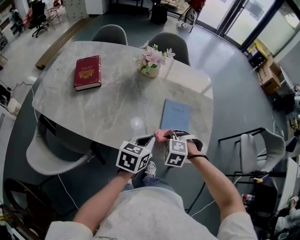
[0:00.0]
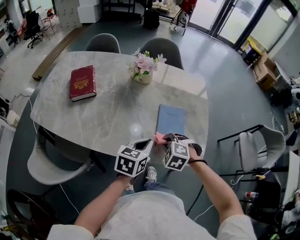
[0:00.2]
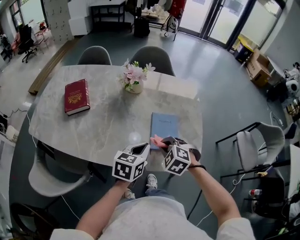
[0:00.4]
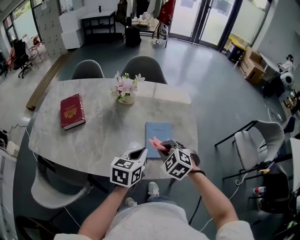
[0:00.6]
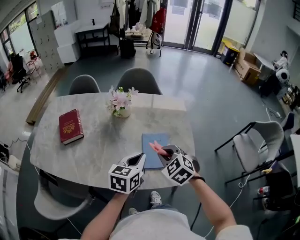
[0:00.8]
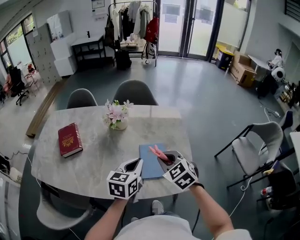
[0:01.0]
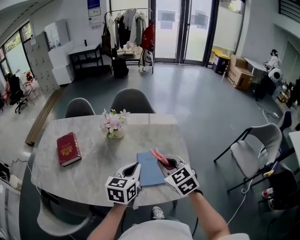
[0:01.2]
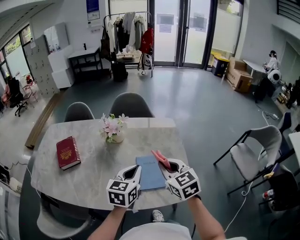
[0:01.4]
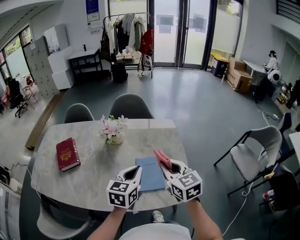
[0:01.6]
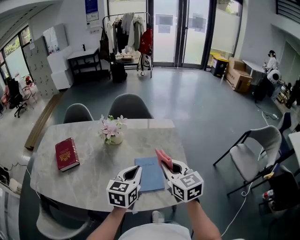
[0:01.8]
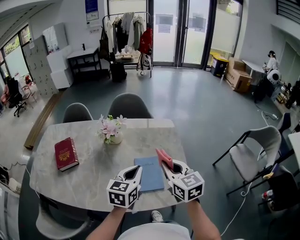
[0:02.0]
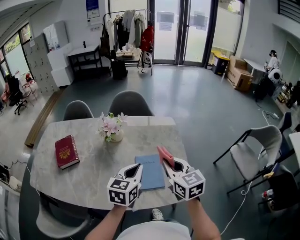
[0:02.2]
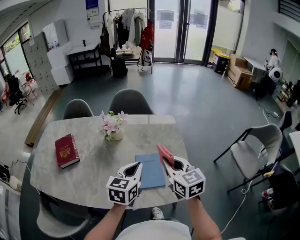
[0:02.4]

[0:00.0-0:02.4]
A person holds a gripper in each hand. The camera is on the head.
0:00.0 to 0:01.2: The right gripper heads upward and forward, covering some 25 cm, and tilts its fingers approximately 40 degrees upward; the left gripper moves upward, forward and to the right, some 15 cm.
0:01.2 to 0:02.4: The right gripper changes its angle by roughly 20 degrees.

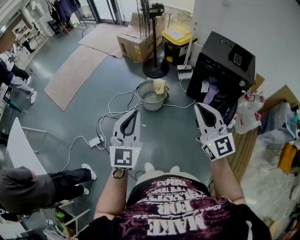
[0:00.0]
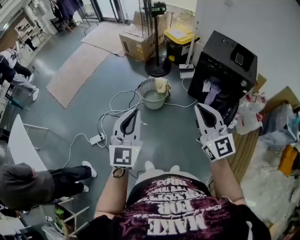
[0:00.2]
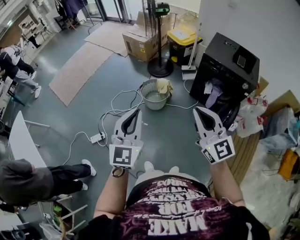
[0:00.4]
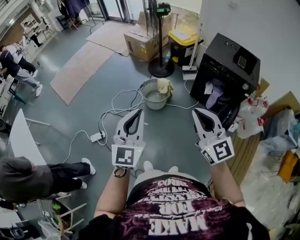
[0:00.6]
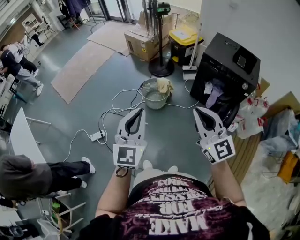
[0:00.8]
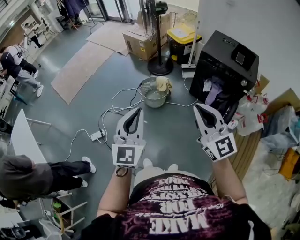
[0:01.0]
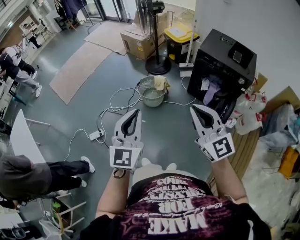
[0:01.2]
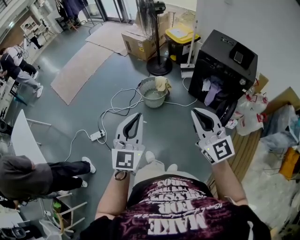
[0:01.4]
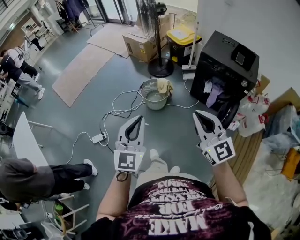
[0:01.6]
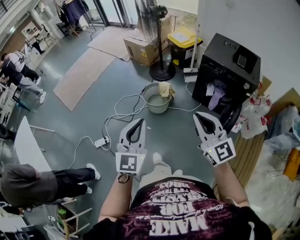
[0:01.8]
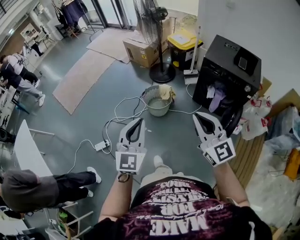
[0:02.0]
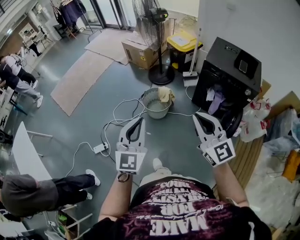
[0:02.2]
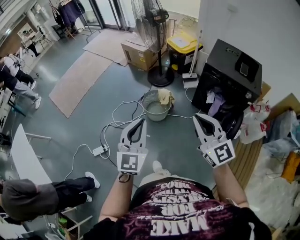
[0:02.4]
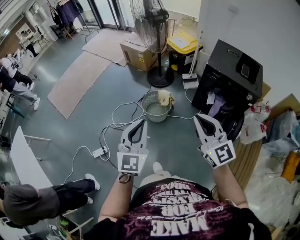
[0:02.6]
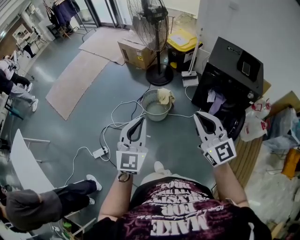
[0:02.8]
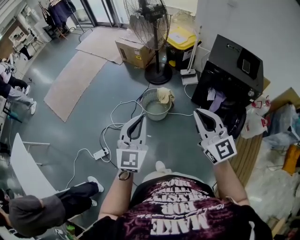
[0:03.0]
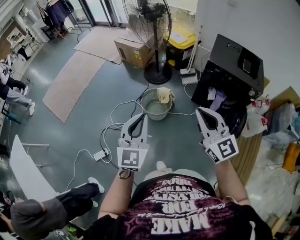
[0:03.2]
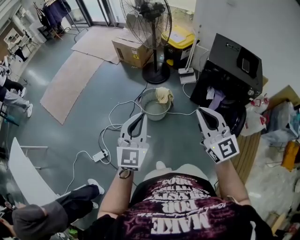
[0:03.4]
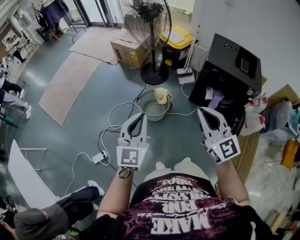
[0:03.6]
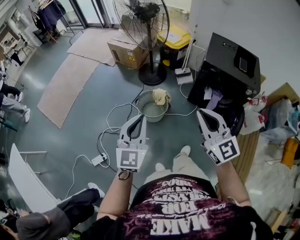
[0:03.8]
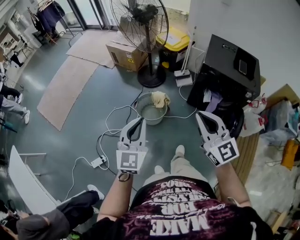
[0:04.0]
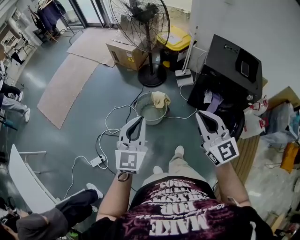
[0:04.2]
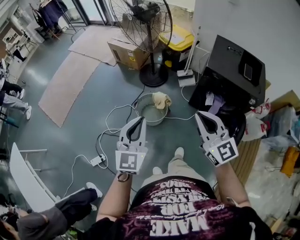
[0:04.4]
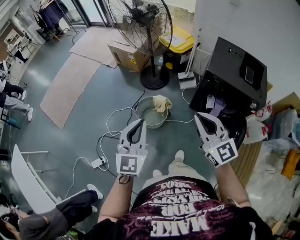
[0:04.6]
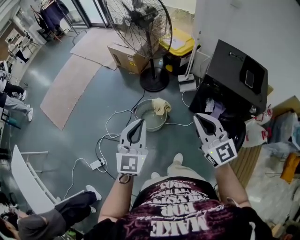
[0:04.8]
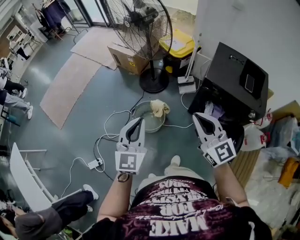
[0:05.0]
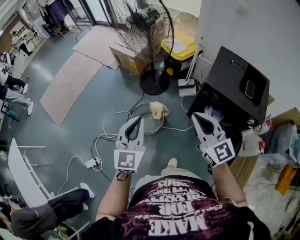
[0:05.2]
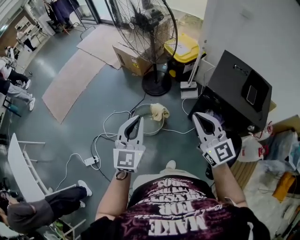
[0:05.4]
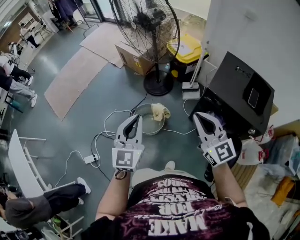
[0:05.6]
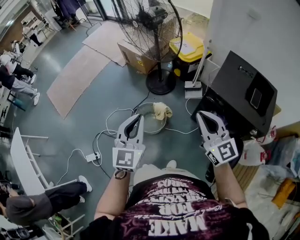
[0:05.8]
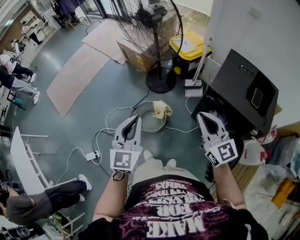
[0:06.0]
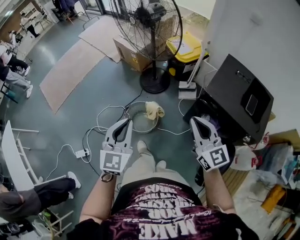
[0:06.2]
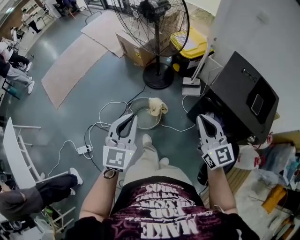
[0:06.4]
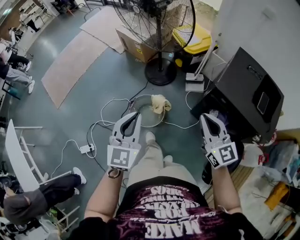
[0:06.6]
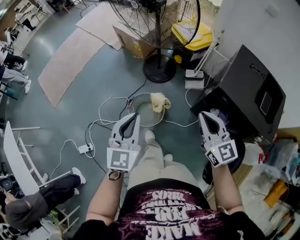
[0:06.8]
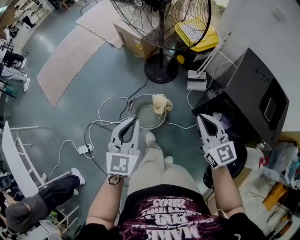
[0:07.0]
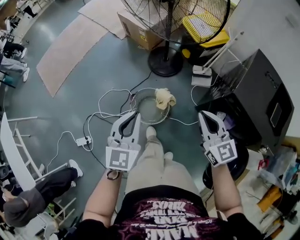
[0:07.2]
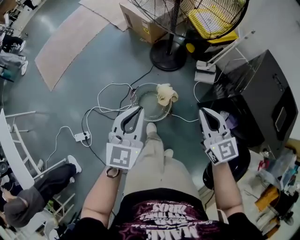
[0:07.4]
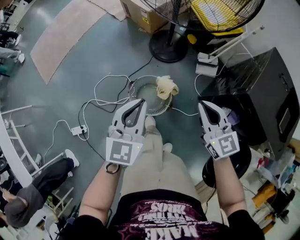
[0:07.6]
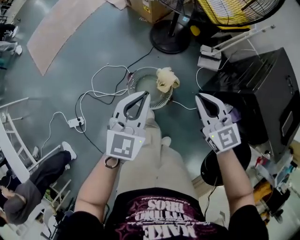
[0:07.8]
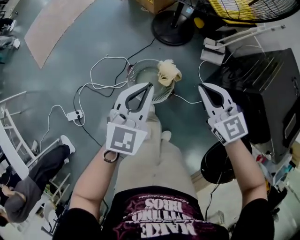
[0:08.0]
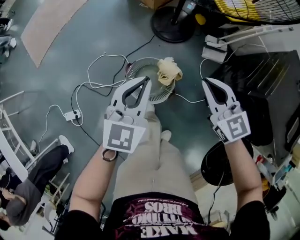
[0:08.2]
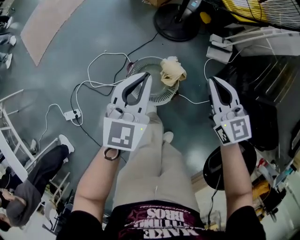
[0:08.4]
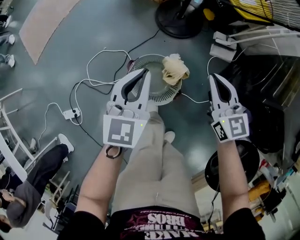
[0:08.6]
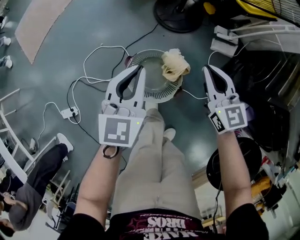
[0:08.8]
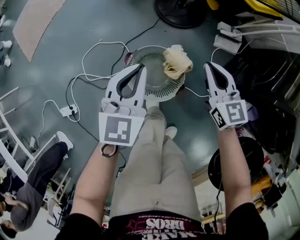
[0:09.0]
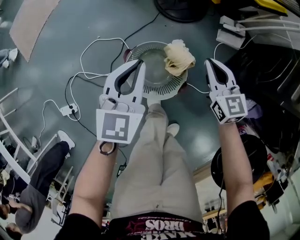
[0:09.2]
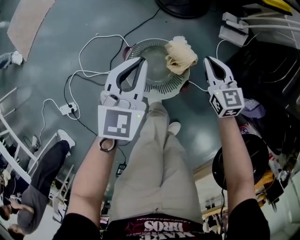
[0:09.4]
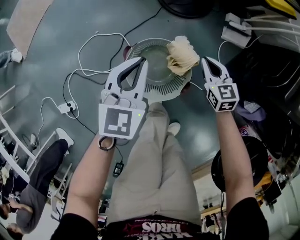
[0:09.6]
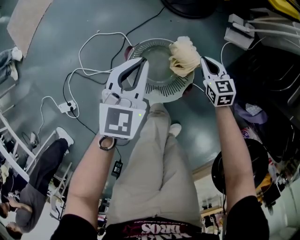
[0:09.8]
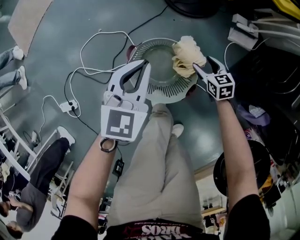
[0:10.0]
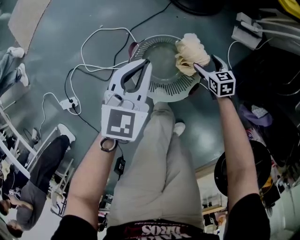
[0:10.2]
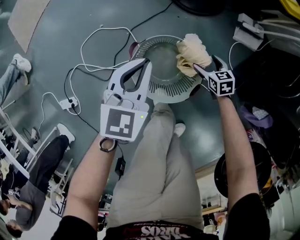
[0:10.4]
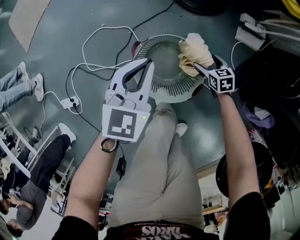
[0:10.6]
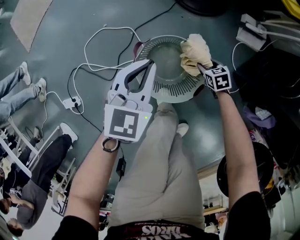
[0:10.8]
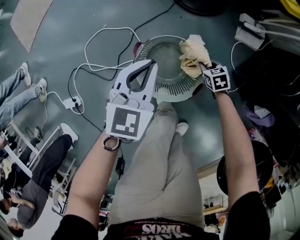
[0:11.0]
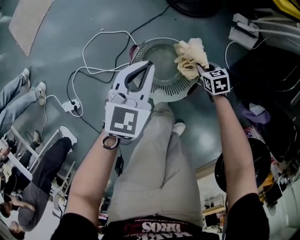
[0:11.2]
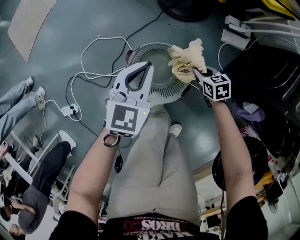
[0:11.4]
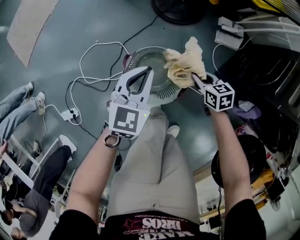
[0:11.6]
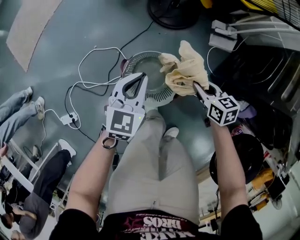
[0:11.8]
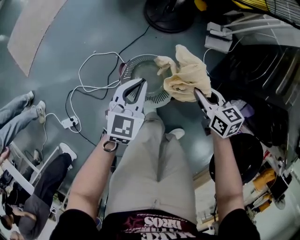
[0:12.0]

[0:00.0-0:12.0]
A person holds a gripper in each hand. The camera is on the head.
0:00.0 to 0:01.6: The left gripper travels to the right by approximately 5 cm, while the right gripper moves about 5 cm.
0:01.6 to 0:03.0: The two grippers go roughly 20 cm forward.
0:03.0 to 0:04.4: The grippers both shift forward by about 10 cm.
0:04.4 to 0:06.0: The right gripper goes some 20 cm to the right and forward. The left gripper shifts about 15 cm forward and to the right.
0:06.0 to 0:07.6: The grippers both shift downward and forward by roughly 25 cm.
0:07.6 to 0:09.0: Both grippers travel together downward and forward, about 25 cm.
0:09.0 to 0:10.4: The right gripper goes about 35 cm downward, tilts its fingers about 30 degrees downward, and opens its fingers, while the left gripper heads downward, covering approximately 15 cm.
0:10.4 to 0:12.0: The right gripper moves upward, approximately 30 cm, swivels roughly 20 degrees, and closes its fingers. The left gripper moves upward and to the right, roughly 10 cm.

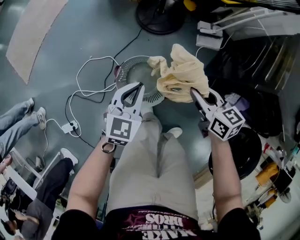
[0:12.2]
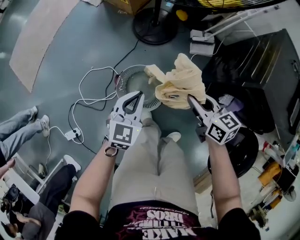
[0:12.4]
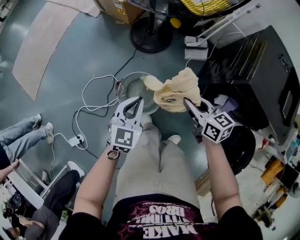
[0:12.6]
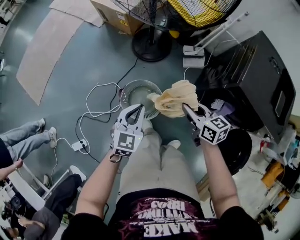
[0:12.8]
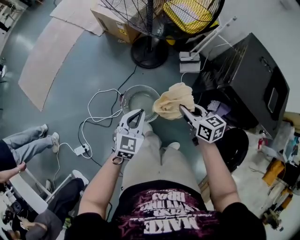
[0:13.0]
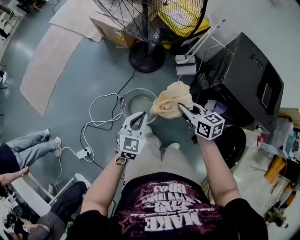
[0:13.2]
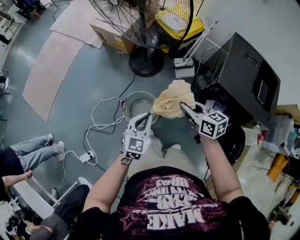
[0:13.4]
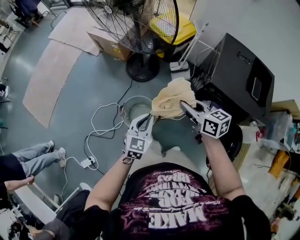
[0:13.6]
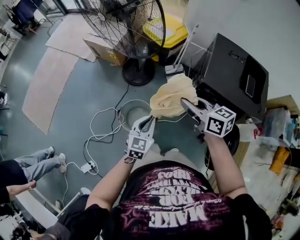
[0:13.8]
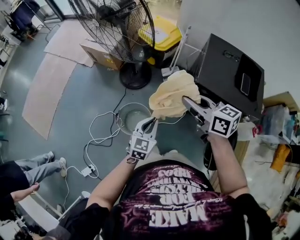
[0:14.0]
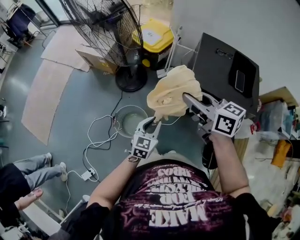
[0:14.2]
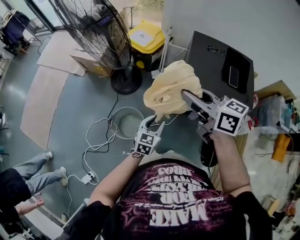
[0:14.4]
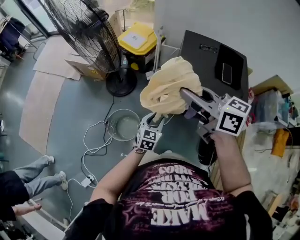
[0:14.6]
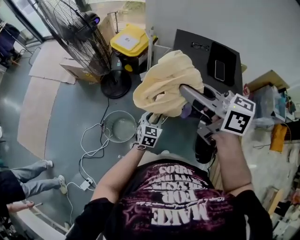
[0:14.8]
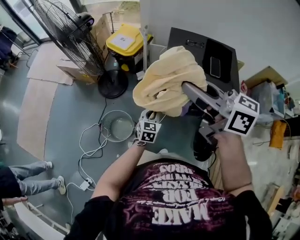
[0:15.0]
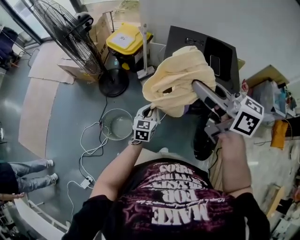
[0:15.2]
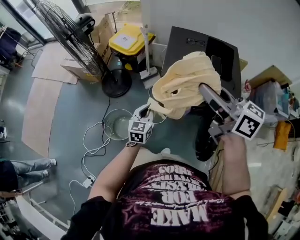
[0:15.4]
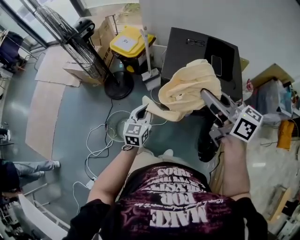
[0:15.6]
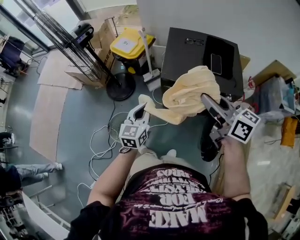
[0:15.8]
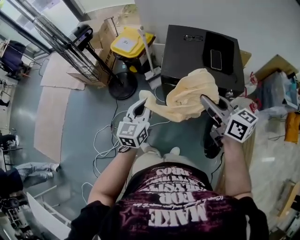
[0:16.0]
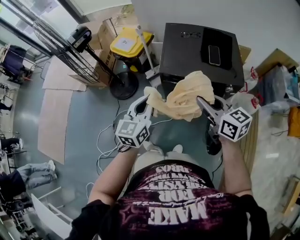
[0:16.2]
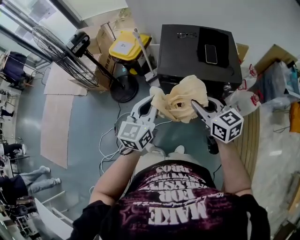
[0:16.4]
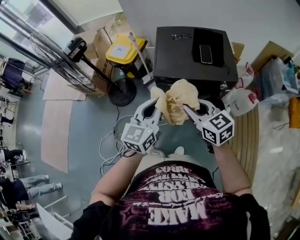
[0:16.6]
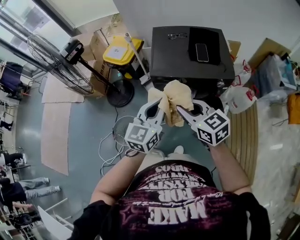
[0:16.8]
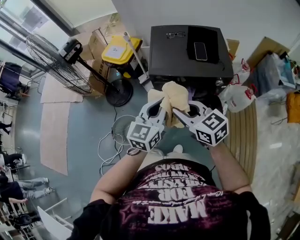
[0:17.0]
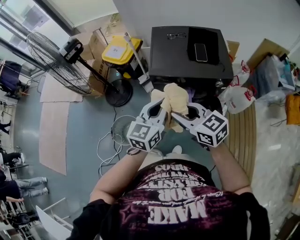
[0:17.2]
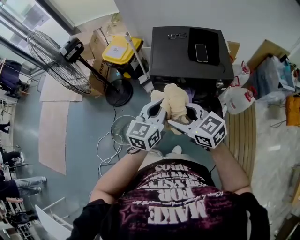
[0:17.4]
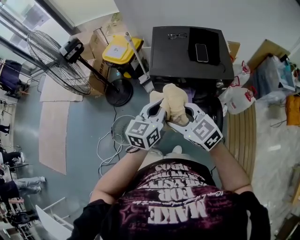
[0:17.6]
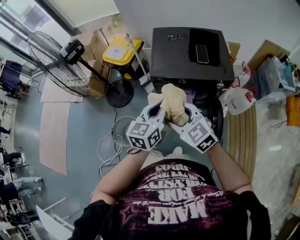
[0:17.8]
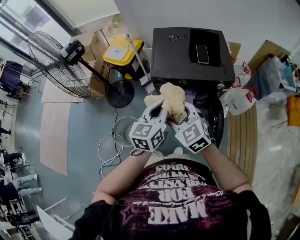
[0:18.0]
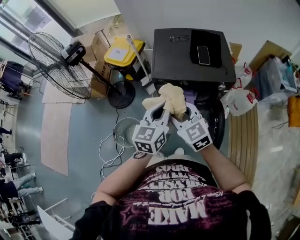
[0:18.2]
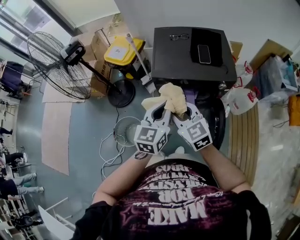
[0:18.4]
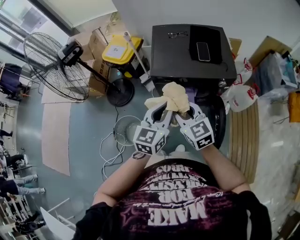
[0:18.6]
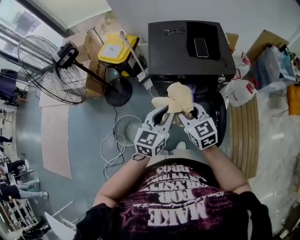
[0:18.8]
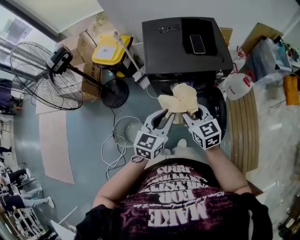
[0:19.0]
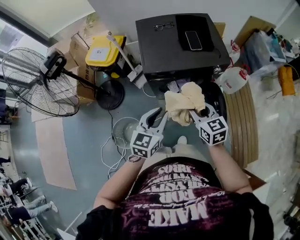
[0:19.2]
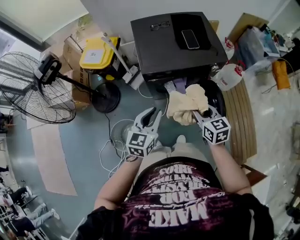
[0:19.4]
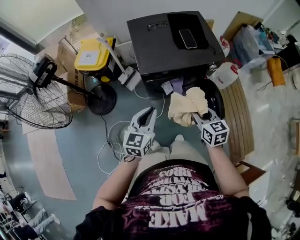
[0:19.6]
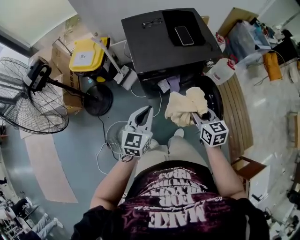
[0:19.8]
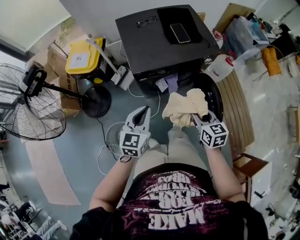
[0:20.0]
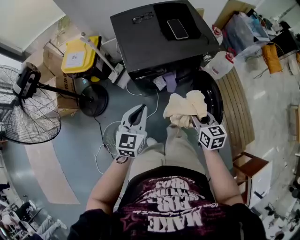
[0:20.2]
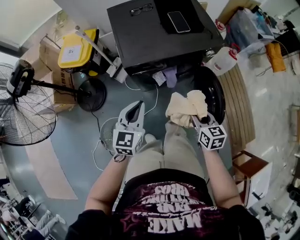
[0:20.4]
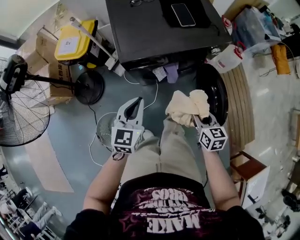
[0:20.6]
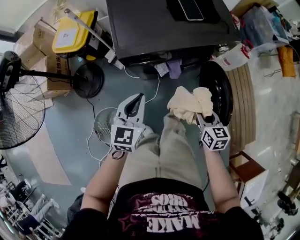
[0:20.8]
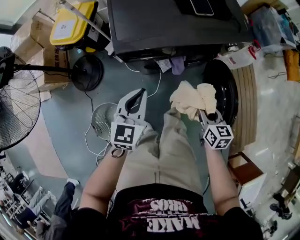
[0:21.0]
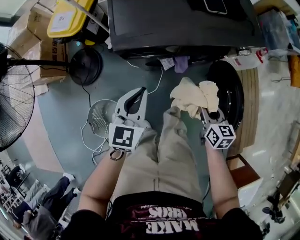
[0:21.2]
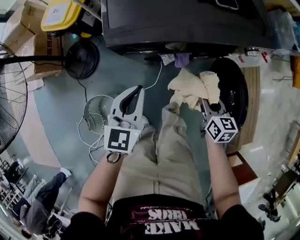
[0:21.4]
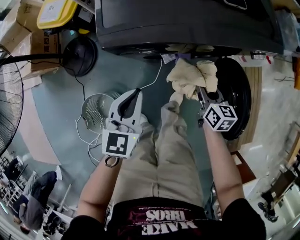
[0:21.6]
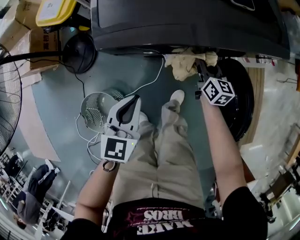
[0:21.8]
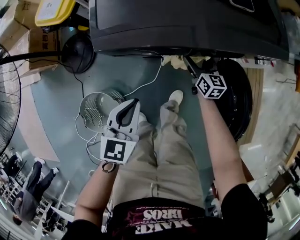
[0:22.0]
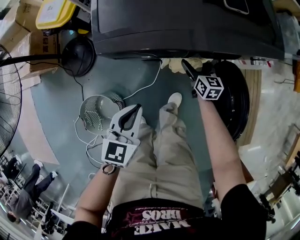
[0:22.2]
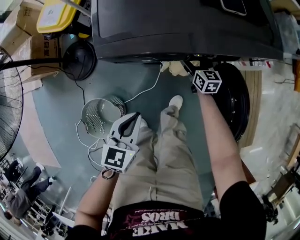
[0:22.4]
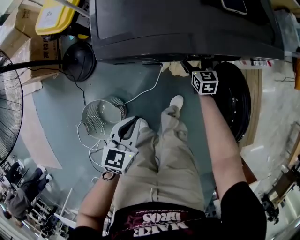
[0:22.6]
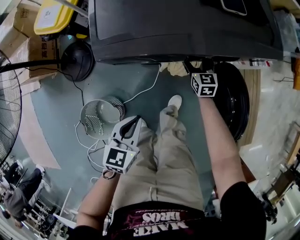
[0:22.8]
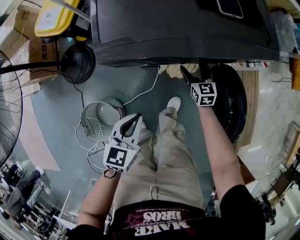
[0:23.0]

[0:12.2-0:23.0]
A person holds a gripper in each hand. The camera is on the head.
0:12.2 to 0:13.8: The left gripper moves upward, to the right and backward, about 30 cm. Meanwhile the right gripper is displaced upward by about 35 cm.
0:13.8 to 0:15.2: The left gripper is displaced to the right by roughly 20 cm, and opens and closes again; the right gripper shifts some 30 cm upward, to the right and backward, and changes its angle by approximately 20 degrees.
0:15.2 to 0:16.8: The right gripper moves downward and backward, some 15 cm, and turns by approximately 30 degrees. The left gripper goes about 25 cm upward and to the right, and swivels approximately 20 degrees.
0:18.4 to 0:20.0: Both grippers move downward, roughly 15 cm. The left gripper rotates roughly 20 degrees, while the right gripper turns by about 50 degrees.
0:20.0 to 0:21.4: Both grippers travel together downward and forward, about 25 cm.
0:21.4 to 0:23.0: The right gripper shifts approximately 20 cm forward and downward, swivels some 20 degrees, and opens its fingers; the left gripper is displaced downward and backward by roughly 10 cm.
